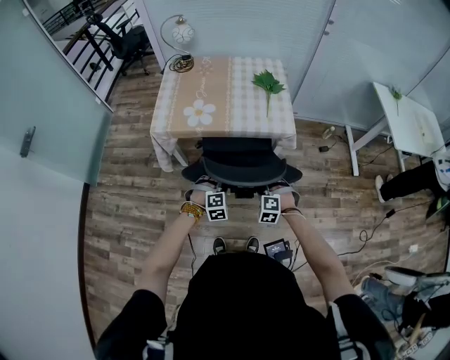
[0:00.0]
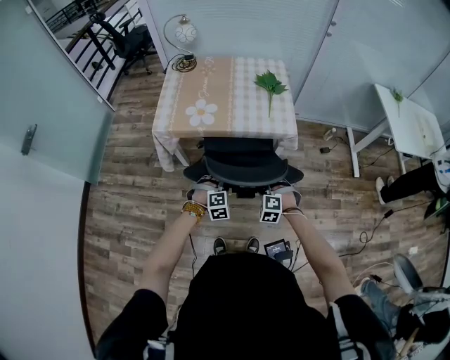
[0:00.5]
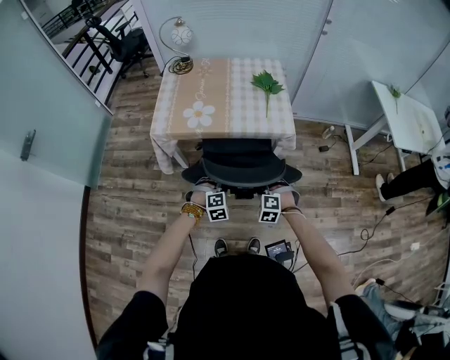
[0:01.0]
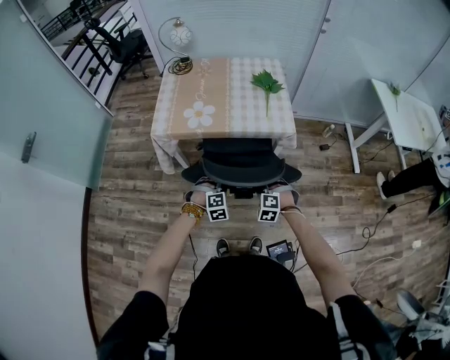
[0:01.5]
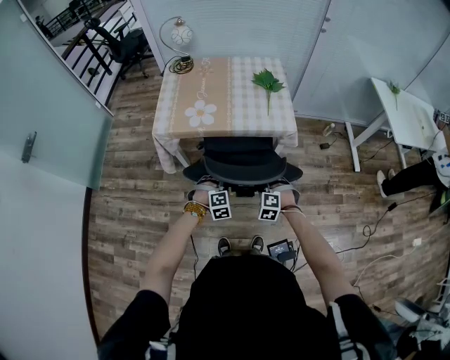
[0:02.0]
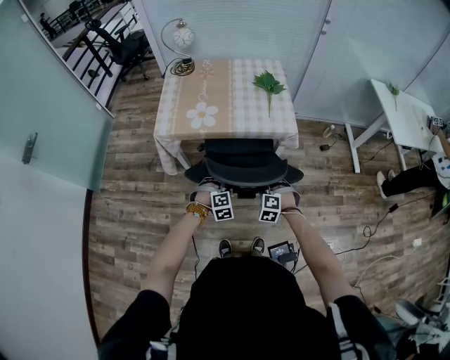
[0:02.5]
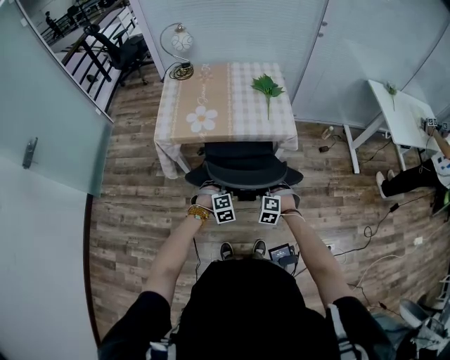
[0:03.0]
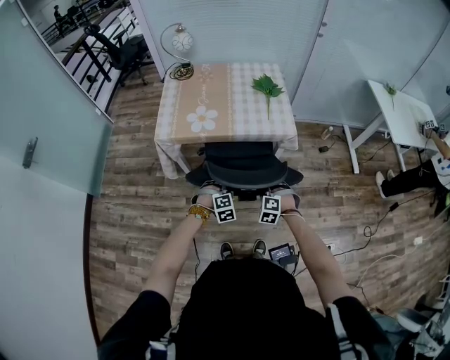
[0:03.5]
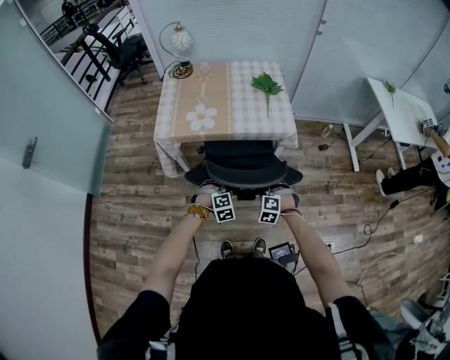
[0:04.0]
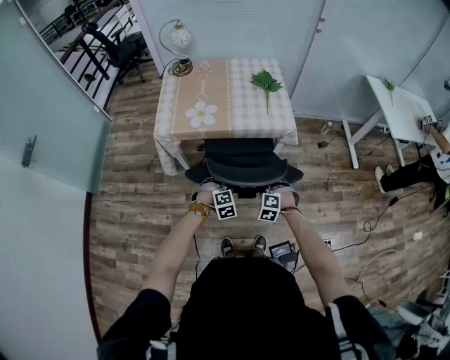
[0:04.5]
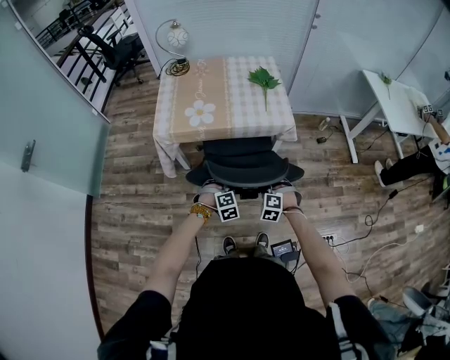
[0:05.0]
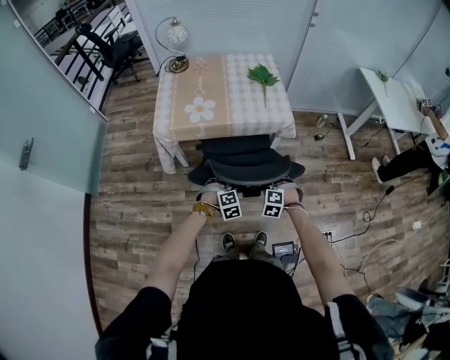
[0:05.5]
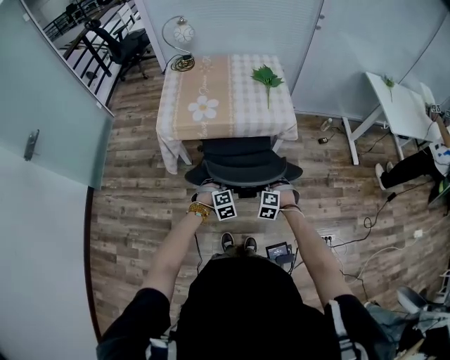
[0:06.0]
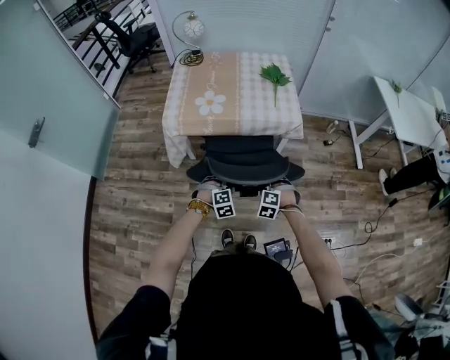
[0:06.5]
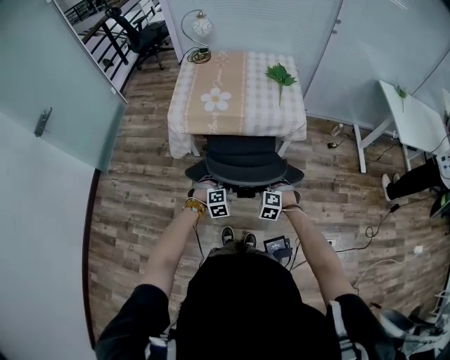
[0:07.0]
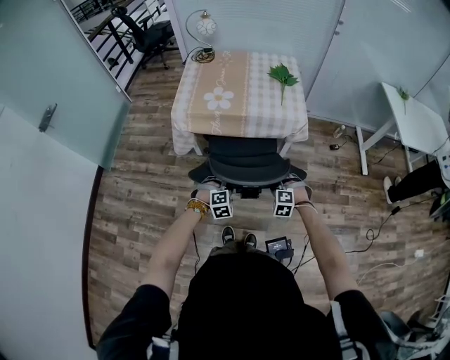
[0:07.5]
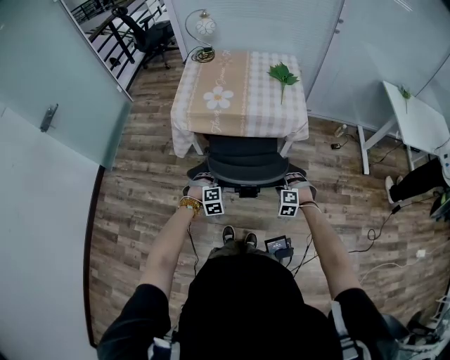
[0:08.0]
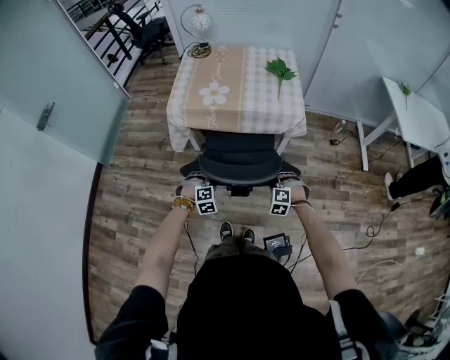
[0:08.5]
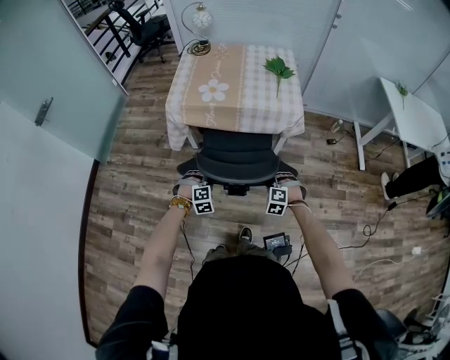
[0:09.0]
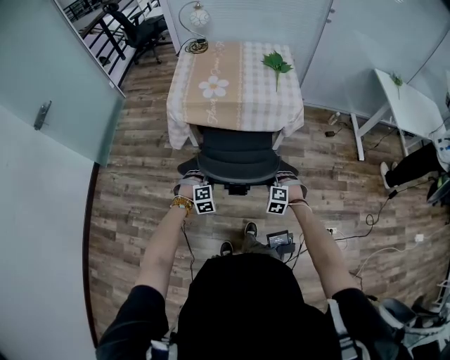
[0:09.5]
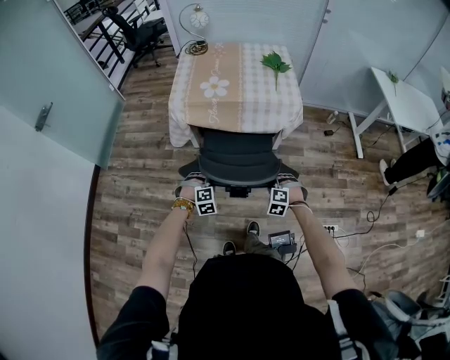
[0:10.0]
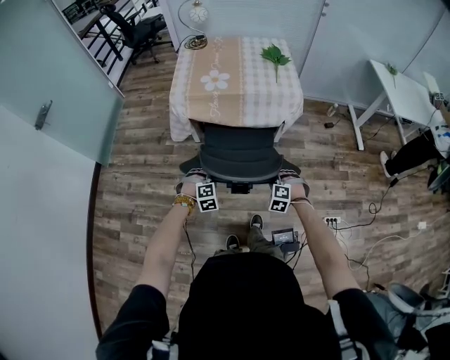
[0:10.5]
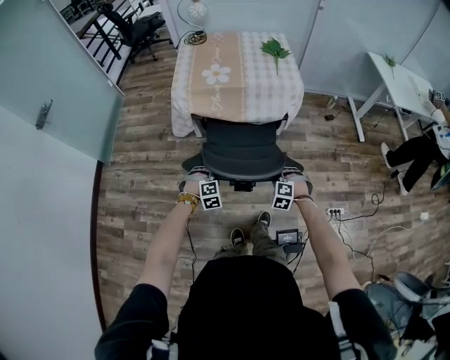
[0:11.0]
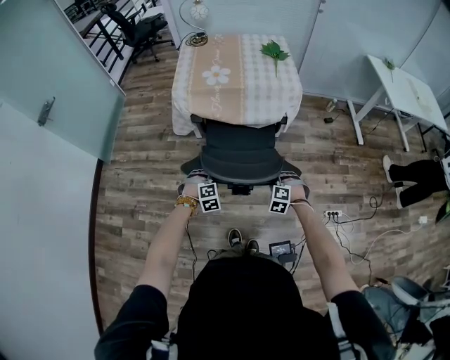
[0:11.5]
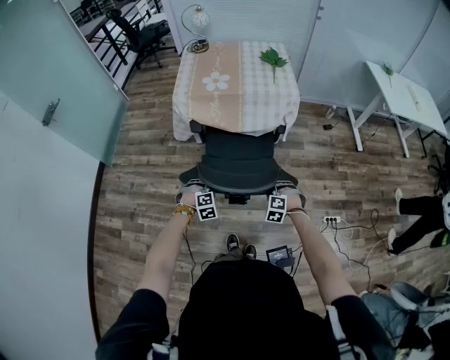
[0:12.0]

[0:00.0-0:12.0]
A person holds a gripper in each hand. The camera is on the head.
0.0 to 2.0 s: The grippers make only small movements.
2.0 to 4.0 s: Both grippers stay put.
4.0 to 6.0 s: The left gripper travels backward by approximately 5 cm.
6.0 to 8.0 s: The left gripper goes some 5 cm backward, while the right gripper is displaced to the right by about 5 cm, and opens up.
8.0 to 10.0 s: Both grippers travel together backward and to the left, about 10 cm.
10.0 to 12.0 s: The two grippers go approximately 10 cm backward.

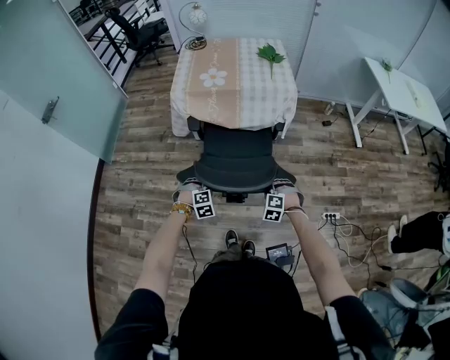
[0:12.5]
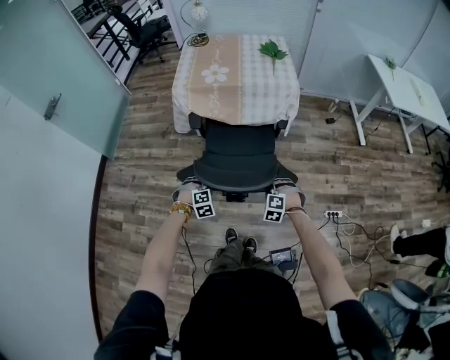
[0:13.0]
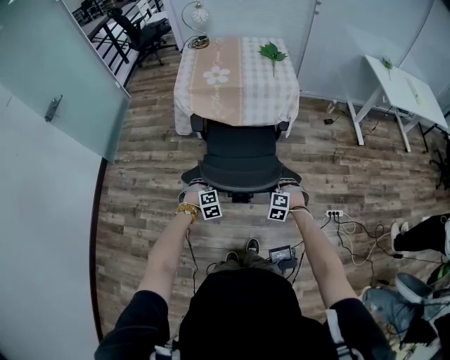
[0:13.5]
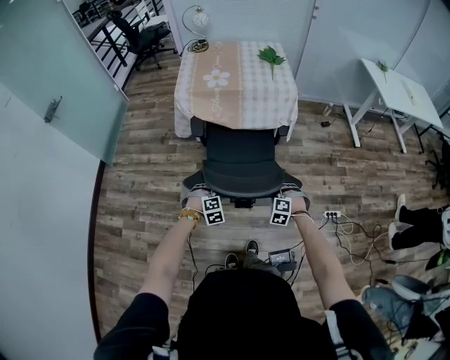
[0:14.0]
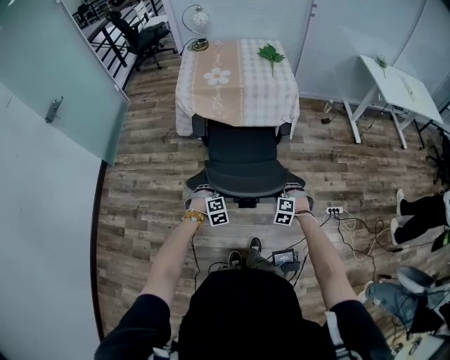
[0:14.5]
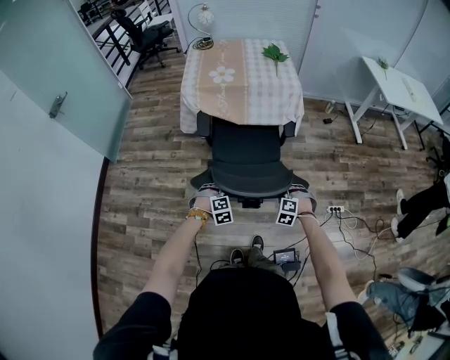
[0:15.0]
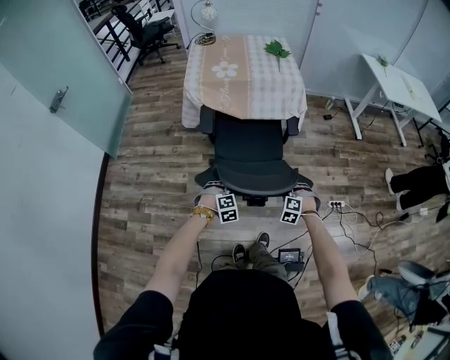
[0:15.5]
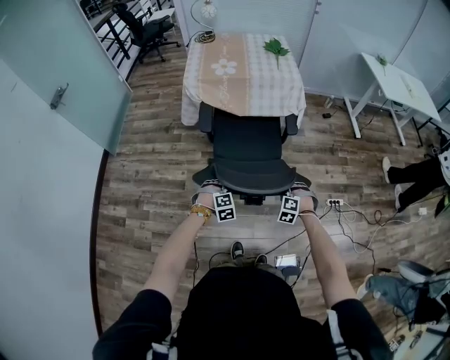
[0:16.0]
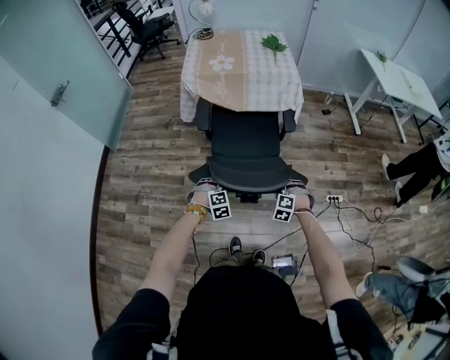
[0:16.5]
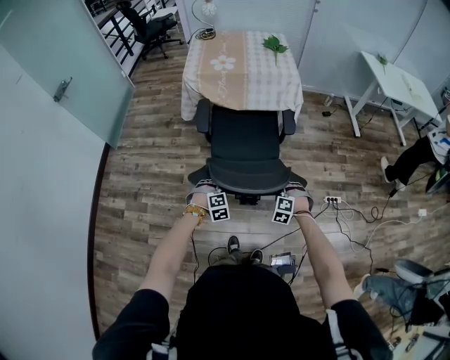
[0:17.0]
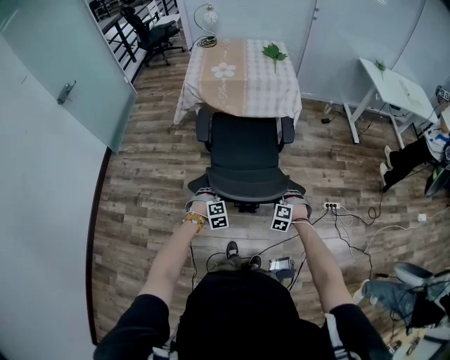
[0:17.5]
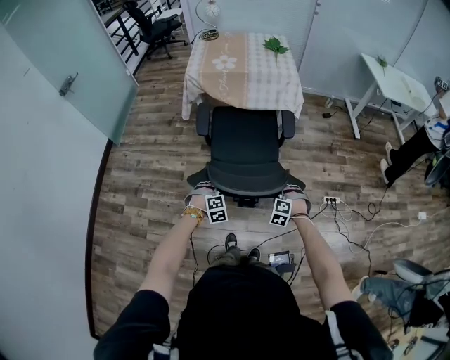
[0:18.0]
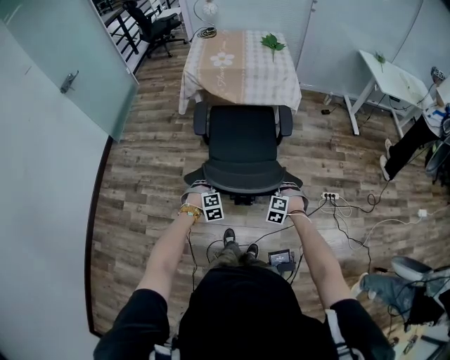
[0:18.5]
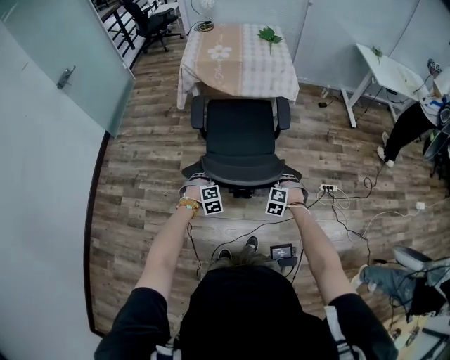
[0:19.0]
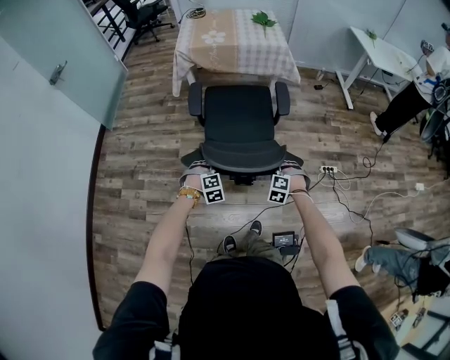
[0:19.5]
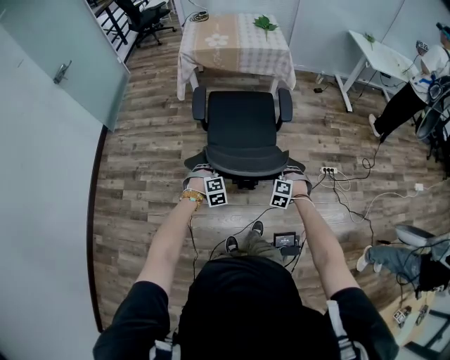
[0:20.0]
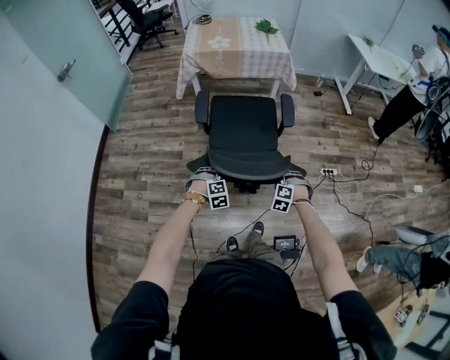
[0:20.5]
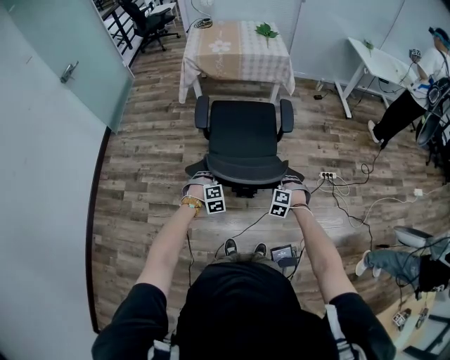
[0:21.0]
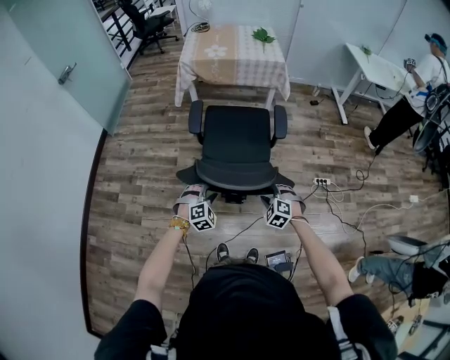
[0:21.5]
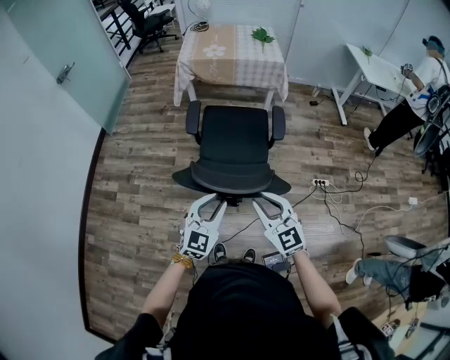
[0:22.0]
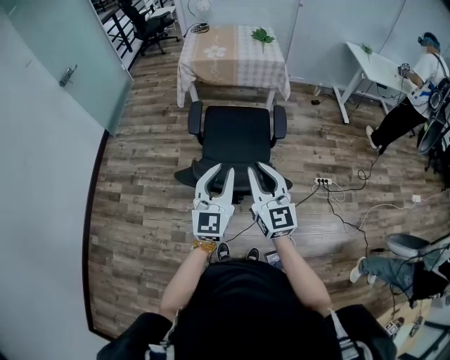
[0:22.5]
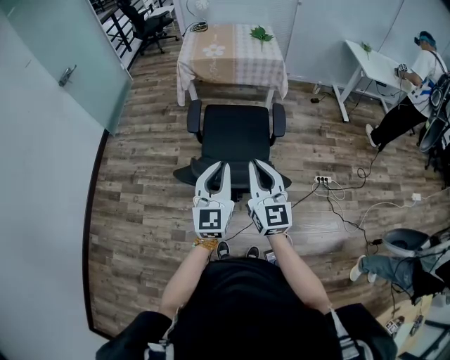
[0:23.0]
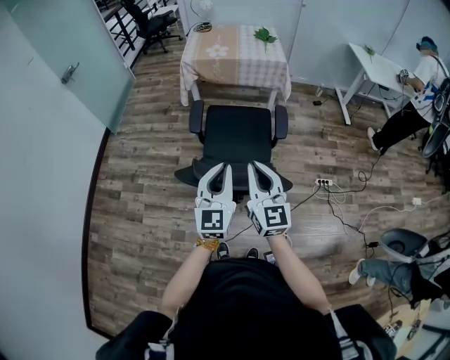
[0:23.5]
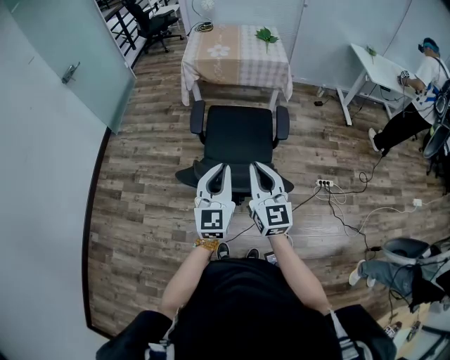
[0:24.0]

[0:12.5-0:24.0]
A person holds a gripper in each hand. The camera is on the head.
12.5 to 14.5 s: Both grippers move backward, approximately 5 cm.
14.5 to 16.5 s: The grippers both shift backward by some 10 cm.
16.5 to 18.5 s: Both grippers travel together backward, roughly 10 cm.
18.5 to 20.0 s: Both grippers travel together backward, about 5 cm.
20.0 to 22.0 s: The grippers both shift upward and backward by about 30 cm. The left gripper tips its fingers upward by about 50 degrees. The right gripper tilts its fingers some 50 degrees upward.
22.0 to 24.0 s: The left gripper goes about 10 cm upward and forward, swivels some 30 degrees, and closes its fingers. Meanwhile the right gripper heads forward and upward, covering some 10 cm, and turns by some 20 degrees.

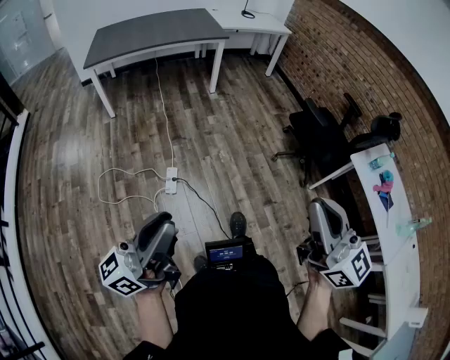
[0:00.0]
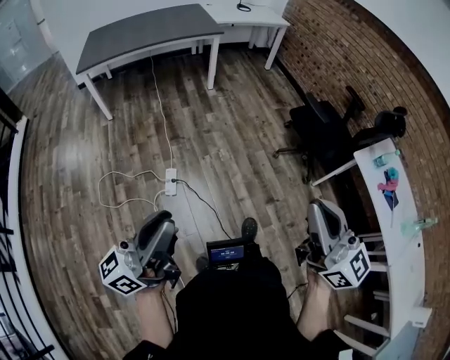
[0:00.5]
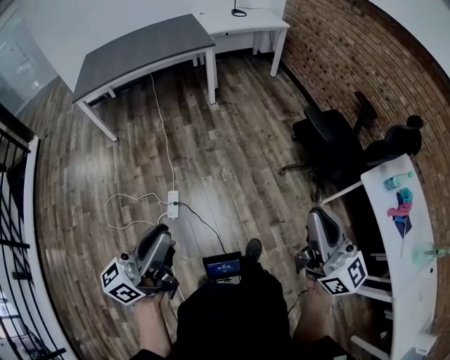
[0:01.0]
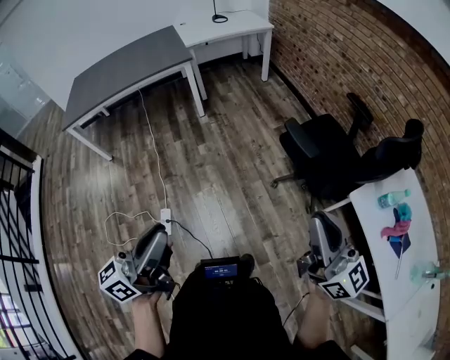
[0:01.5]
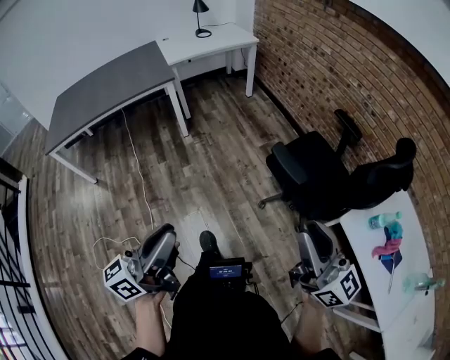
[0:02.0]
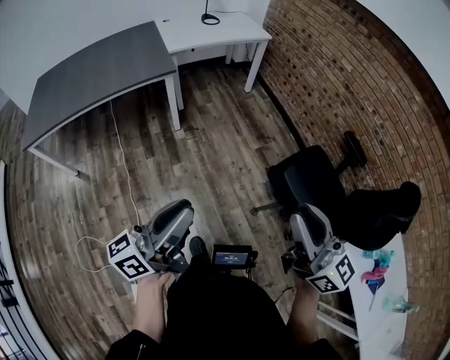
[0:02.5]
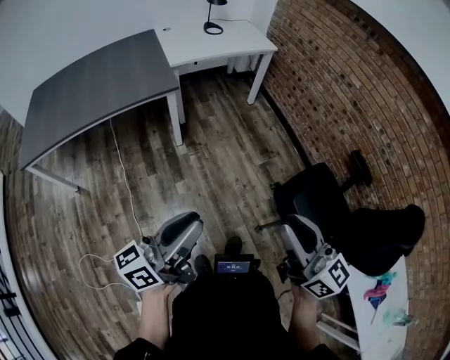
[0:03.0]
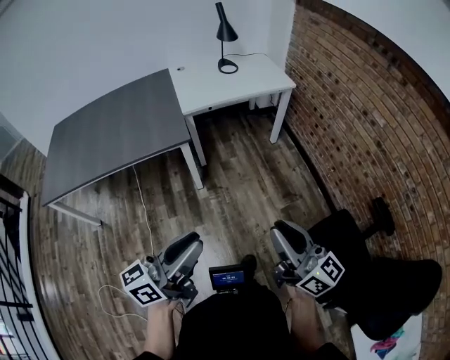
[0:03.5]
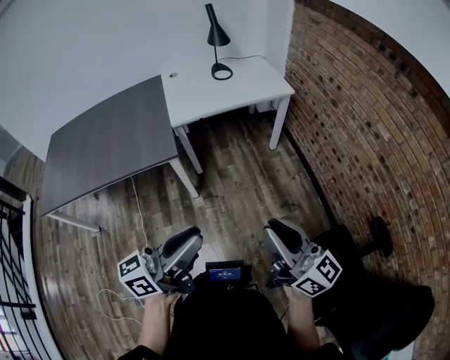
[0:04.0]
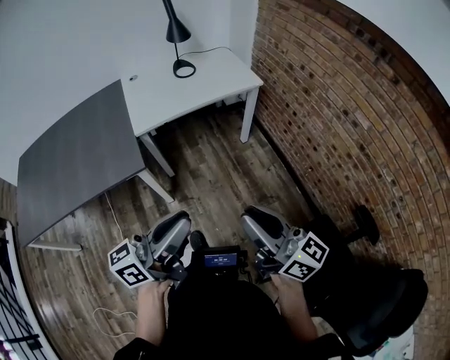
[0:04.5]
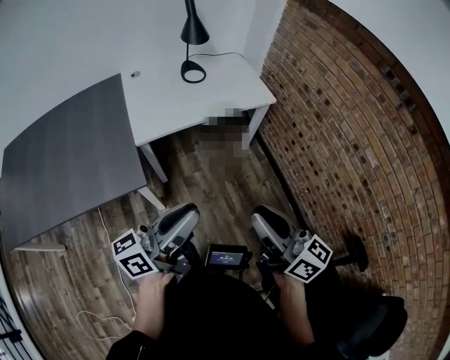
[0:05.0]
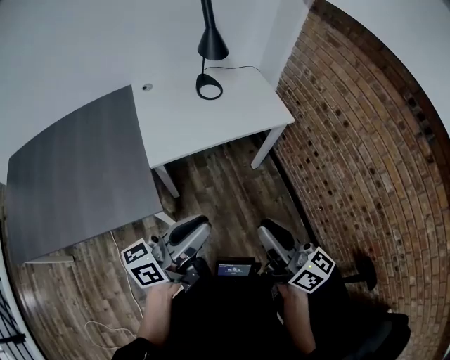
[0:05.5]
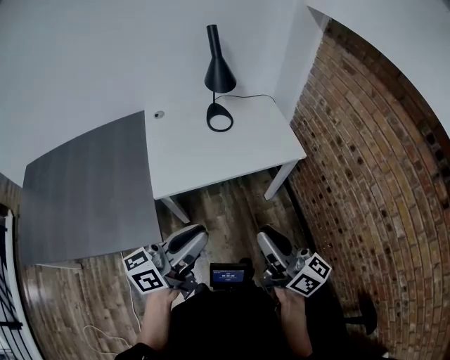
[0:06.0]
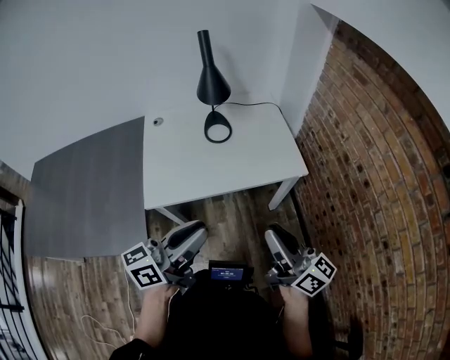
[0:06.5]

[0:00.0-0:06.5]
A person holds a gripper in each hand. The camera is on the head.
0.0 to 2.0 s: The pair of grippers is taken forward and to the right, roughly 50 cm.
2.0 to 4.5 s: The pair of grippers is taken forward, approximately 70 cm. The right gripper turns by roughly 20 degrees.
4.5 to 6.5 s: The grippers both shift forward by about 40 cm.
